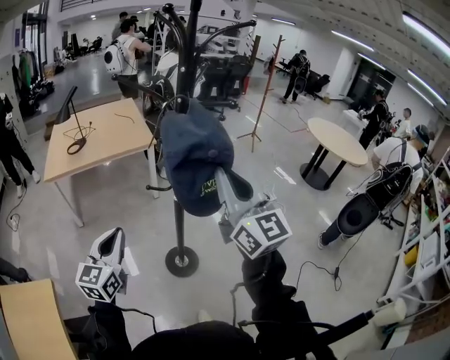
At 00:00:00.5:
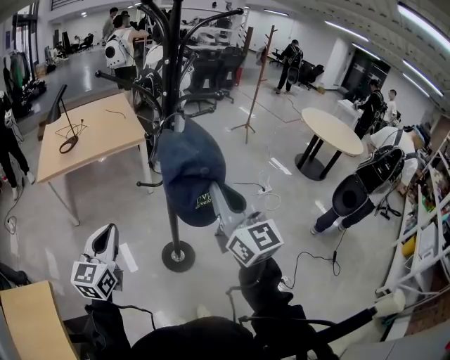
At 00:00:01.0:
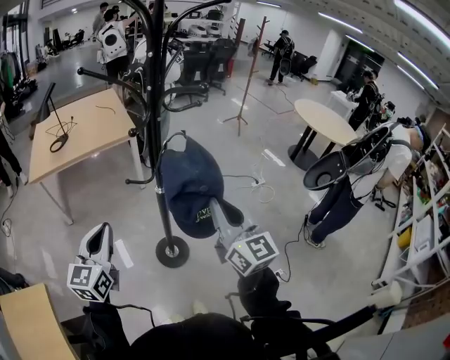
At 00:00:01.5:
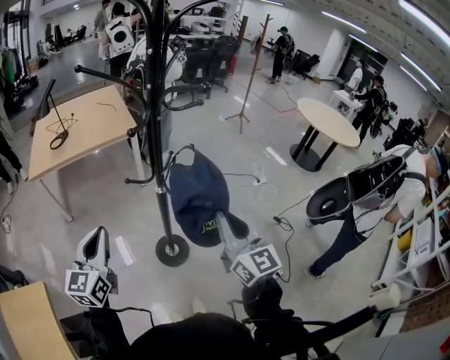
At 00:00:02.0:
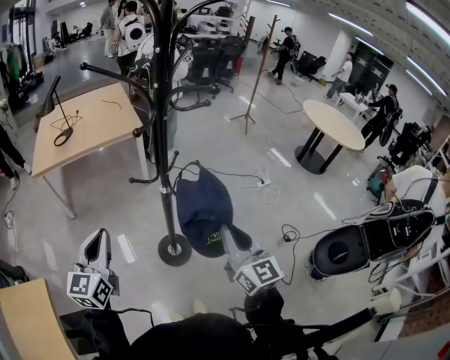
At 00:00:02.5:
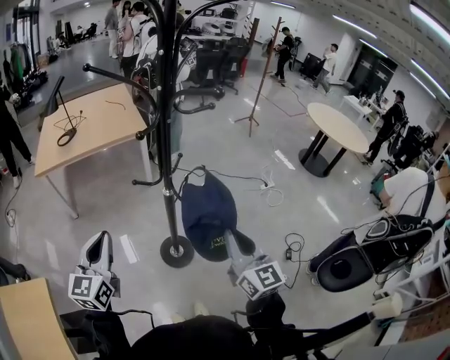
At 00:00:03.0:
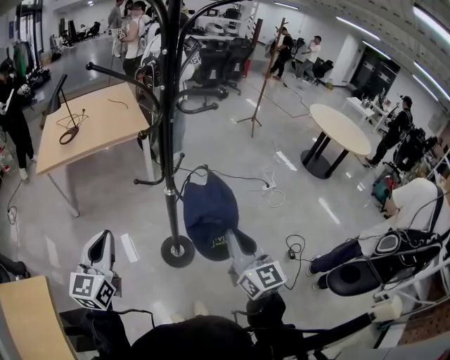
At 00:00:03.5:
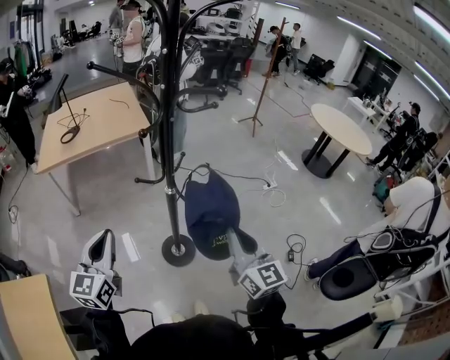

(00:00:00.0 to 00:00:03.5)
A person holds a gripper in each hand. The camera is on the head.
00:00:00.0 - 00:00:02.0: The right gripper goes about 20 cm downward.
00:00:02.0 - 00:00:03.5: The two grippers keep their place.

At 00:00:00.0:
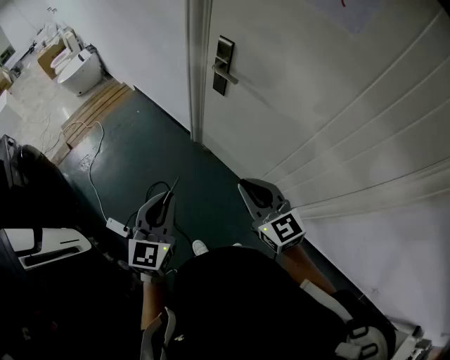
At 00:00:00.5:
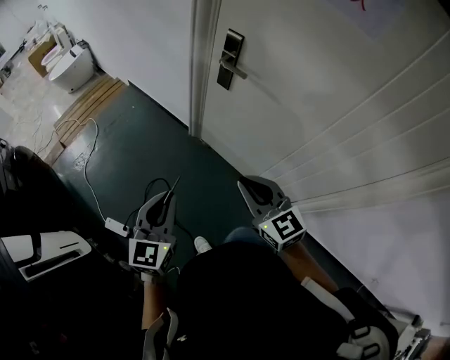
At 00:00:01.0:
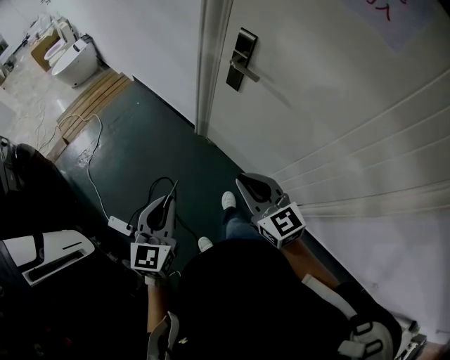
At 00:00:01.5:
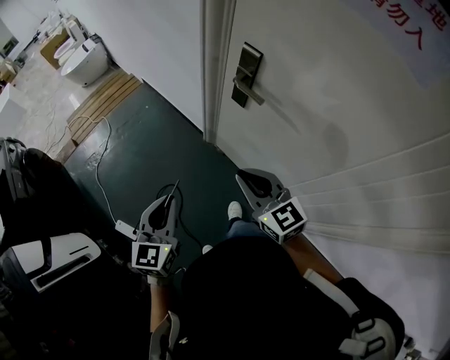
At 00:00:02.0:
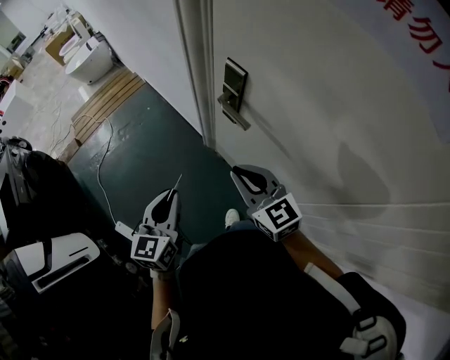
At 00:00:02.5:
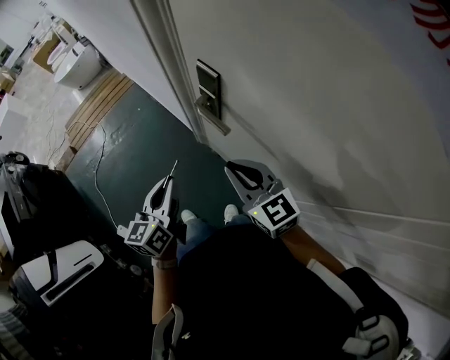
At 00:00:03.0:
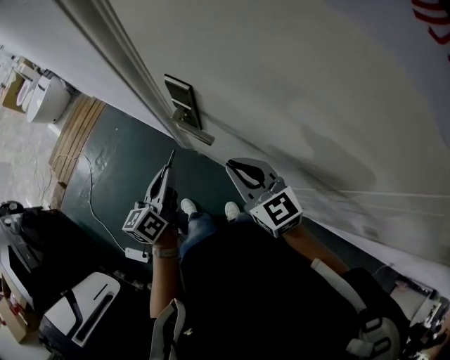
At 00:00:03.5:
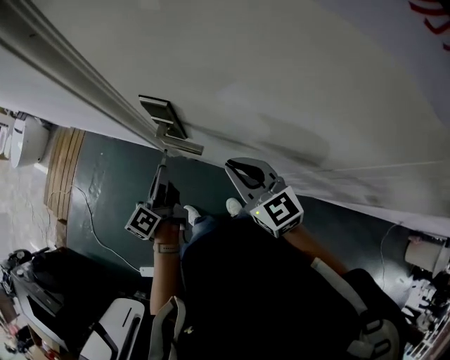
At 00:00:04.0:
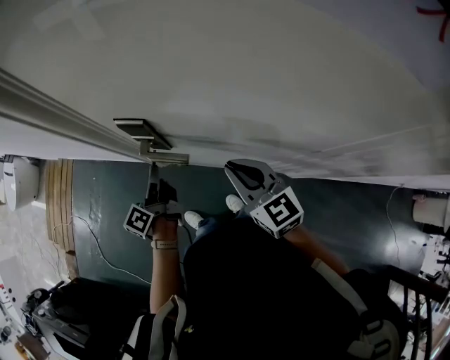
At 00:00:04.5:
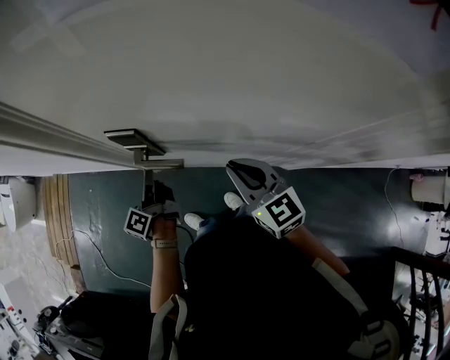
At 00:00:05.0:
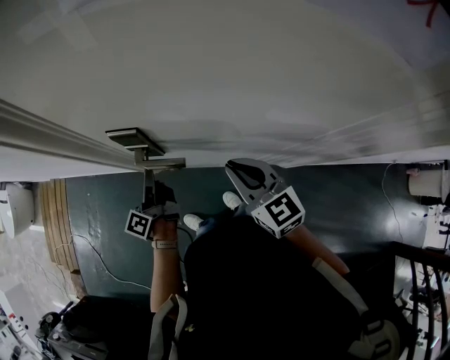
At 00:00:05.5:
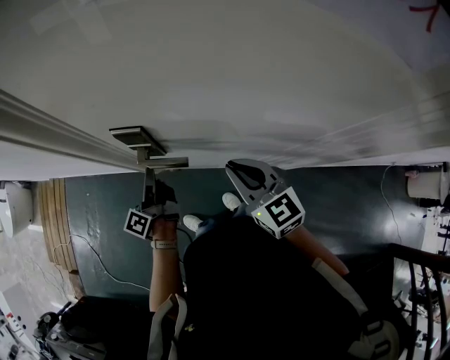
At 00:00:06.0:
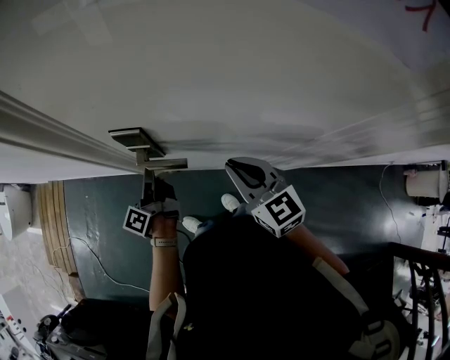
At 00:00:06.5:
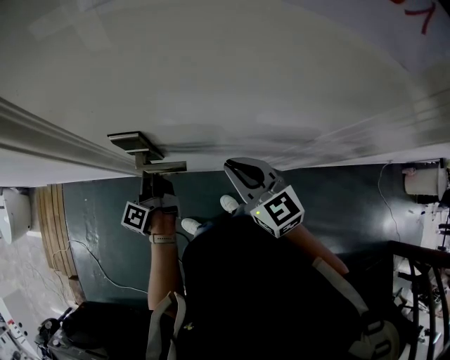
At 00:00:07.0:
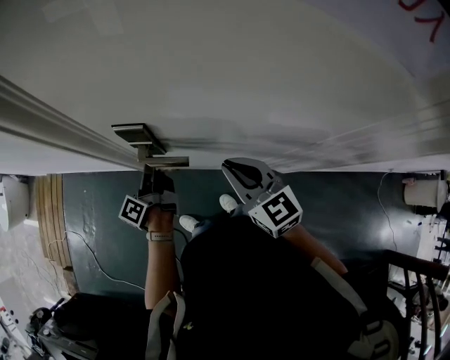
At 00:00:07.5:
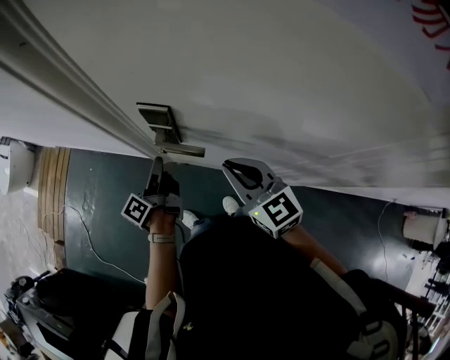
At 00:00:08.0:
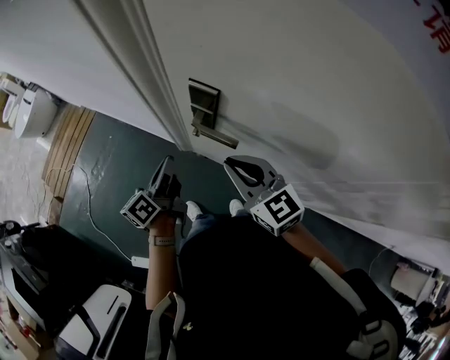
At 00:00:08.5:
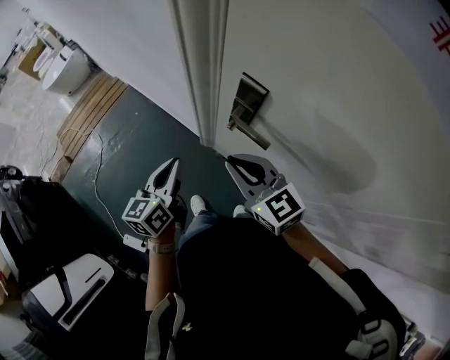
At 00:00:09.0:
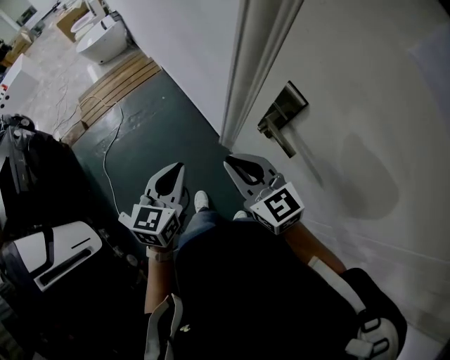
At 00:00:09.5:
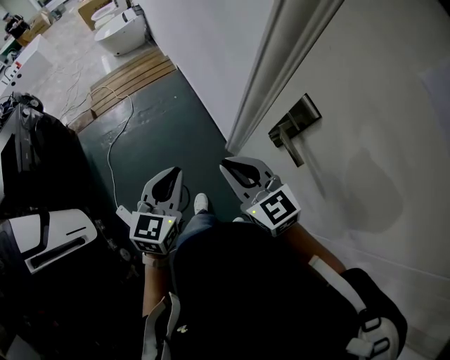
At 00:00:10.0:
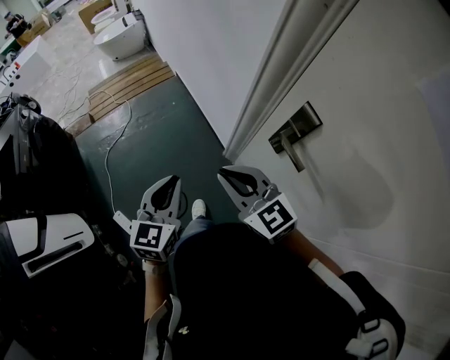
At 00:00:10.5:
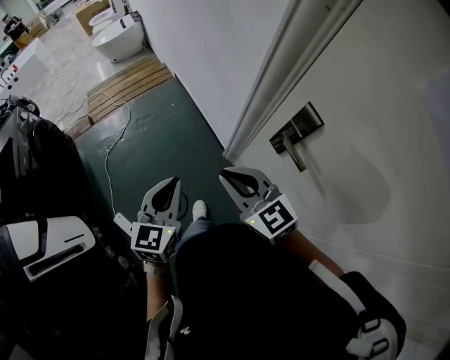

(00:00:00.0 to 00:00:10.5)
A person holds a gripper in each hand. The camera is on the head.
00:00:00.0 - 00:00:02.0: Both grippers travel together forward, some 25 cm.
00:00:02.0 - 00:00:04.0: The left gripper moves approximately 30 cm, and rotates around the line of its fingers by approximately 60 degrees, counterclockwise from behind. The right gripper moves approximately 10 cm, and changes its angle by roughly 40 degrees.
00:00:04.0 - 00:00:06.5: The grippers stay close to where they were, moving slightly.
00:00:06.5 - 00:00:08.5: The right gripper ends up roughly 20 cm from where it was, and rotates approximately 40 degrees; the left gripper moves about 20 cm, and rolls clockwise, seen from behind, by about 50 degrees.
00:00:08.5 - 00:00:10.5: The right gripper heads to the left, covering some 15 cm, and changes its angle by some 20 degrees, while the left gripper heads to the left and backward, covering some 15 cm, and turns by some 30 degrees.

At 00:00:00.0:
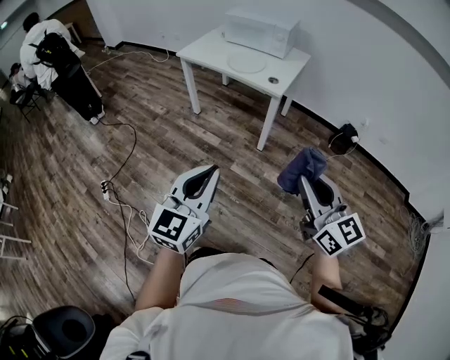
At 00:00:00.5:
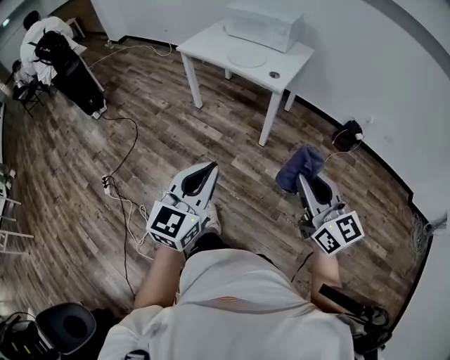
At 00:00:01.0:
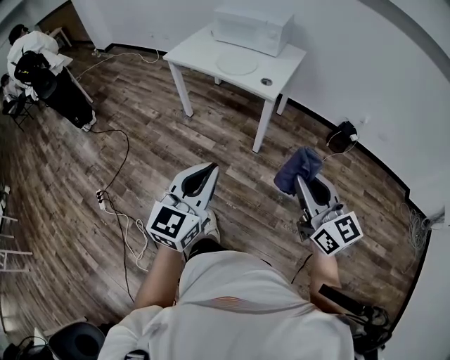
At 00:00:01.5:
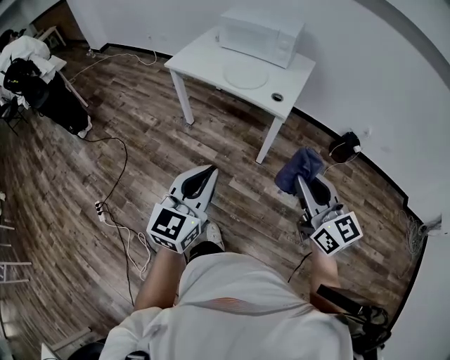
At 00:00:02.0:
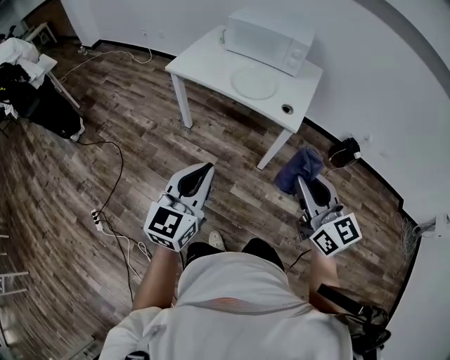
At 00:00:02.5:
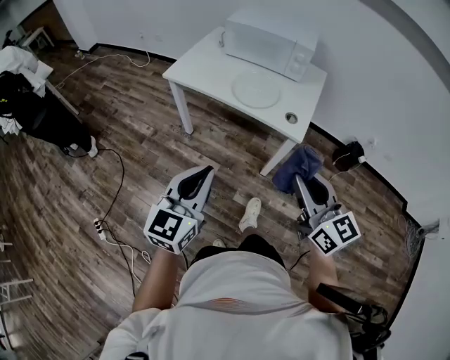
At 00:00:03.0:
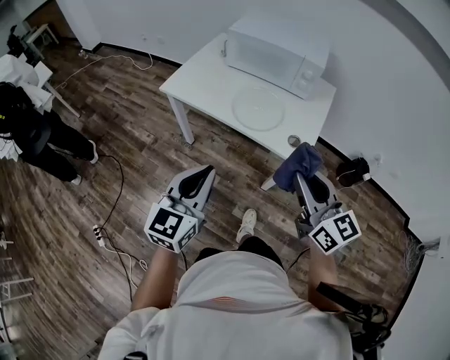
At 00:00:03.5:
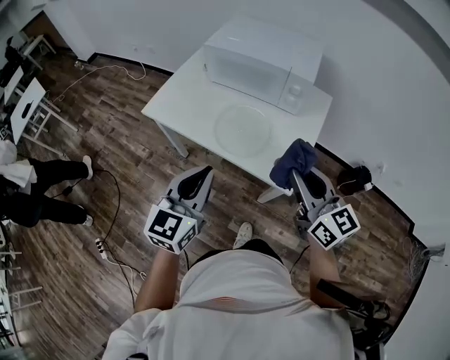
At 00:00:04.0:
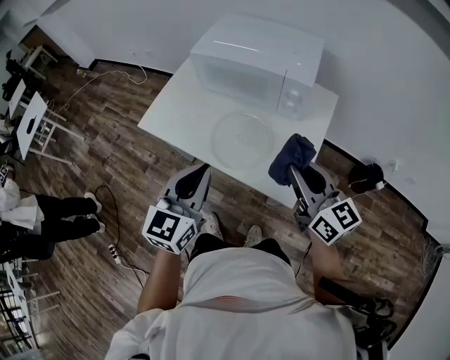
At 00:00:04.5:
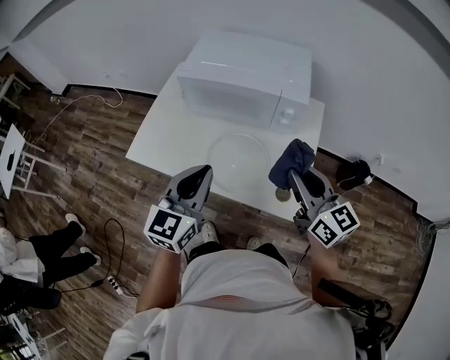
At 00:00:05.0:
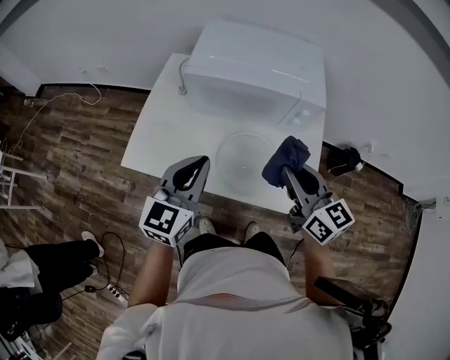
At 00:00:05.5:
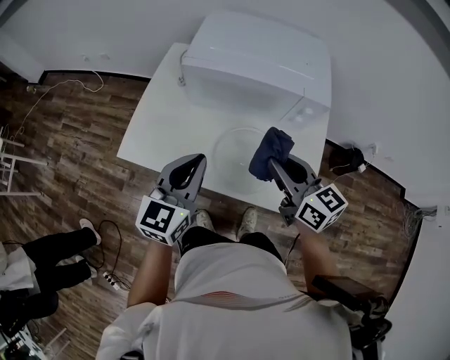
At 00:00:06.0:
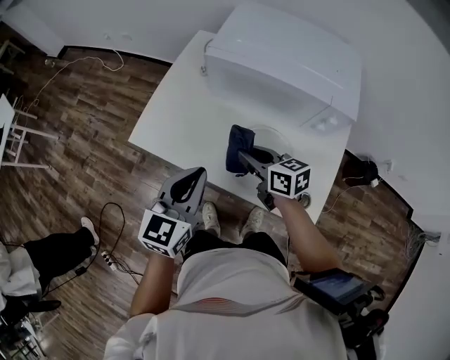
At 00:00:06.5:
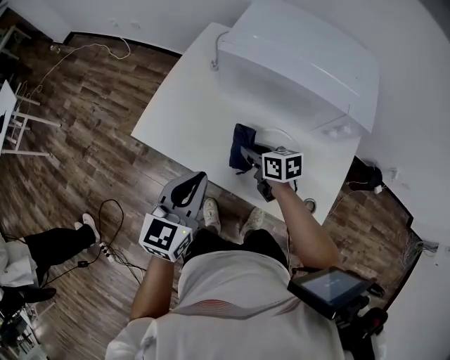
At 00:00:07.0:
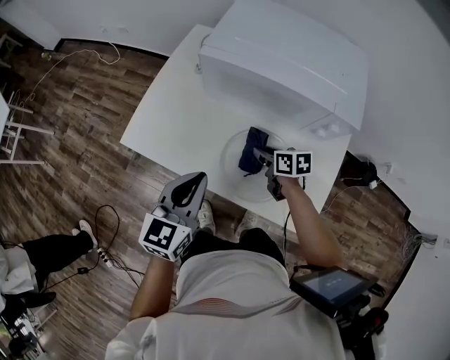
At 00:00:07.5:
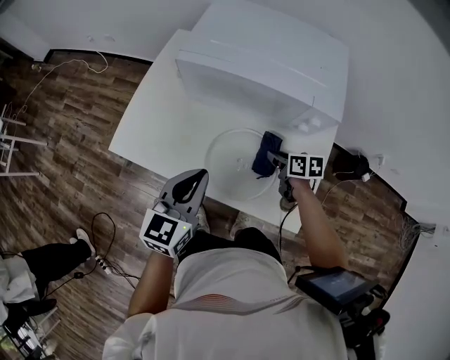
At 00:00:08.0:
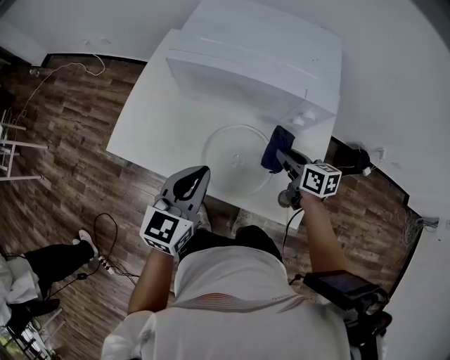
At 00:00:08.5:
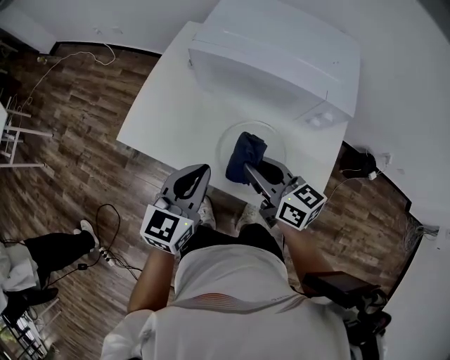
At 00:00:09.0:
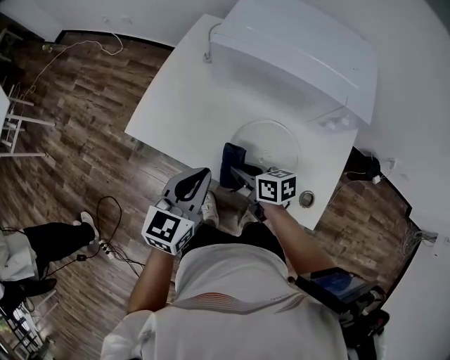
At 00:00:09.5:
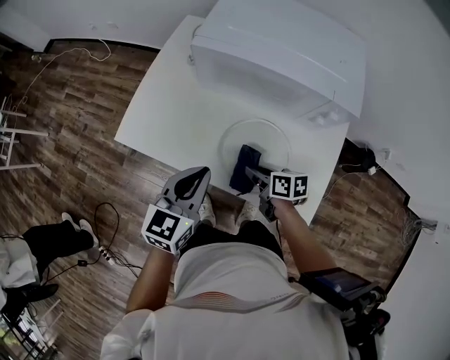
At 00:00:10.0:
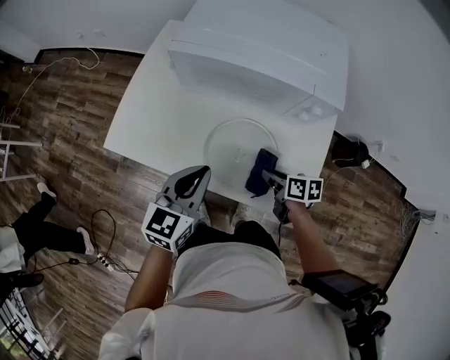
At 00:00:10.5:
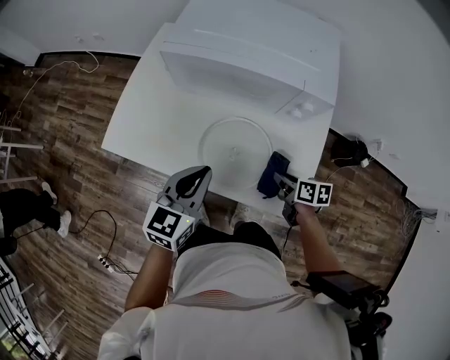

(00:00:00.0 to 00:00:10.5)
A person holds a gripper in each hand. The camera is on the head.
00:00:00.0 - 00:00:02.0: Both grippers travel together forward, about 30 cm.
00:00:02.0 - 00:00:04.0: The two grippers travel together, forward, about 40 cm.
00:00:04.0 - 00:00:06.5: The right gripper heads downward, to the left and forward, covering roughly 40 cm, and points its fingers some 30 degrees further downward. The left gripper heads forward, to the left and downward, covering about 25 cm.
00:00:06.5 - 00:00:08.5: The left gripper goes about 5 cm to the right, while the right gripper moves upward and backward, approximately 15 cm, reaches approximately 20 cm to the right, then returns, and turns by roughly 20 degrees.
00:00:08.5 - 00:00:10.5: The right gripper moves downward and to the right, some 25 cm, and tips its fingers downward by some 30 degrees; the left gripper heads to the right, covering approximately 5 cm.

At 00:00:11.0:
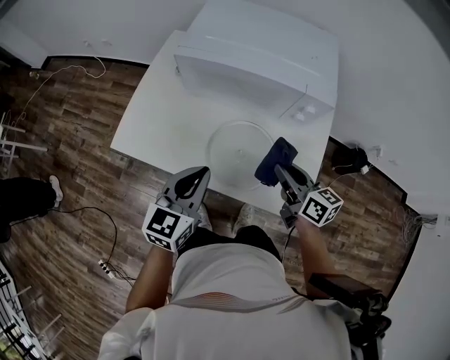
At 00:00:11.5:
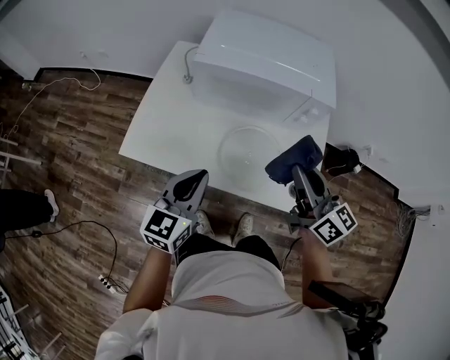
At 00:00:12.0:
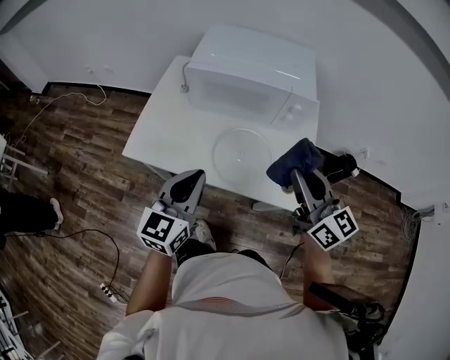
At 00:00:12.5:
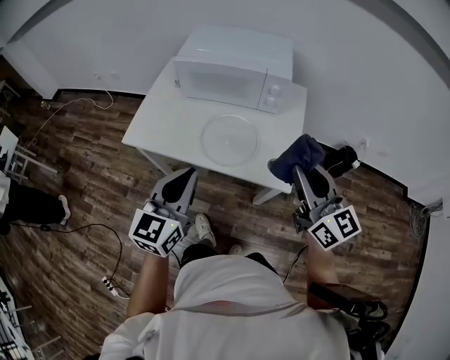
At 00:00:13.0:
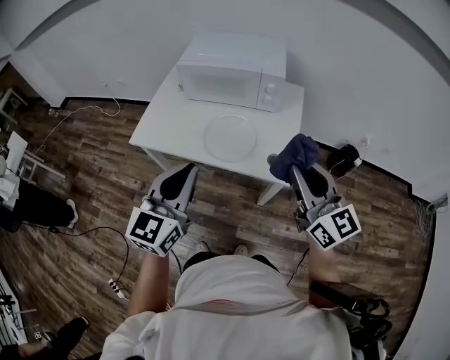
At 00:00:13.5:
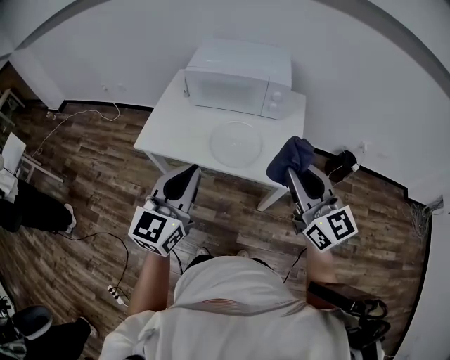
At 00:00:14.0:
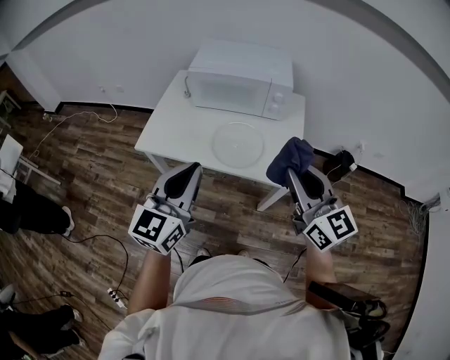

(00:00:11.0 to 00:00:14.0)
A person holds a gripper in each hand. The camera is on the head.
00:00:11.0 - 00:00:12.5: The two grippers go about 25 cm backward and upward. The right gripper turns by roughly 40 degrees.
00:00:12.5 - 00:00:14.0: The left gripper heads upward, covering some 5 cm; the right gripper travels to the left and backward by approximately 10 cm.
